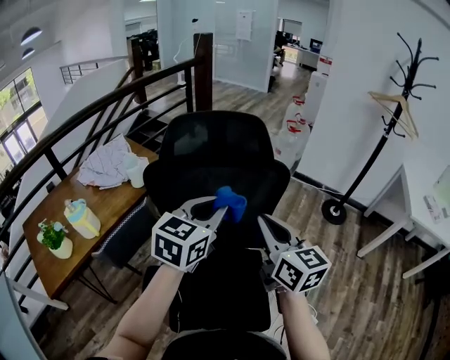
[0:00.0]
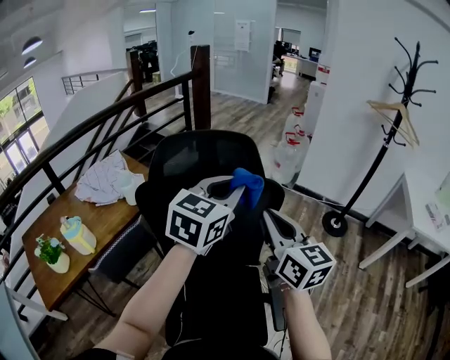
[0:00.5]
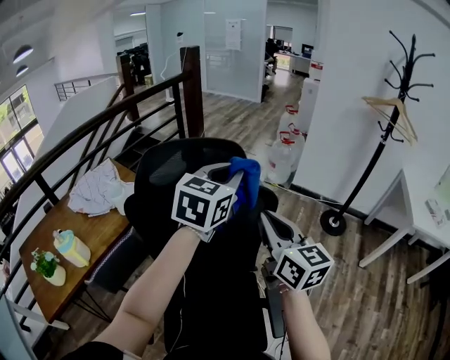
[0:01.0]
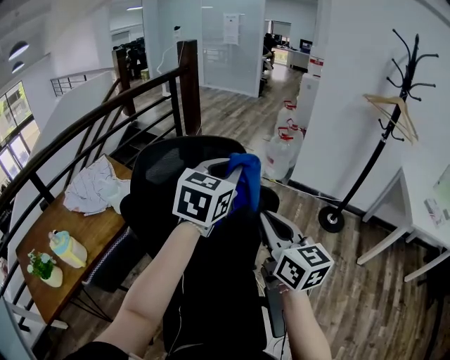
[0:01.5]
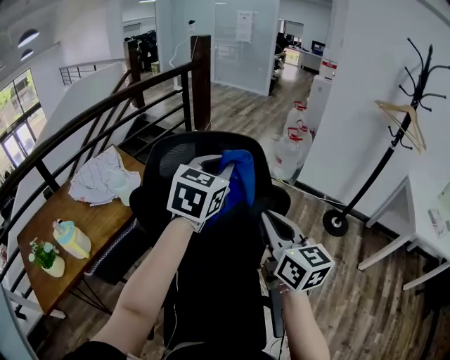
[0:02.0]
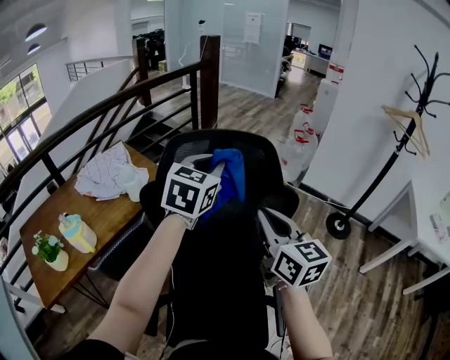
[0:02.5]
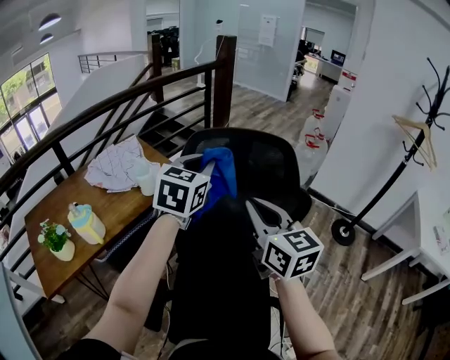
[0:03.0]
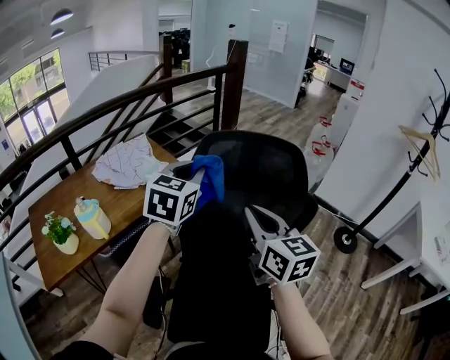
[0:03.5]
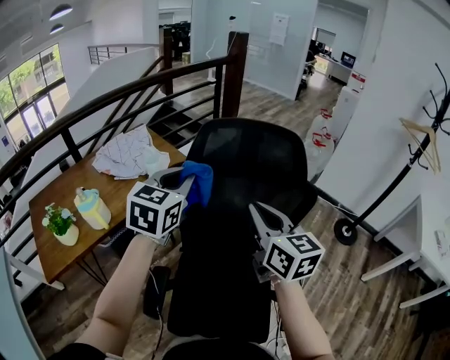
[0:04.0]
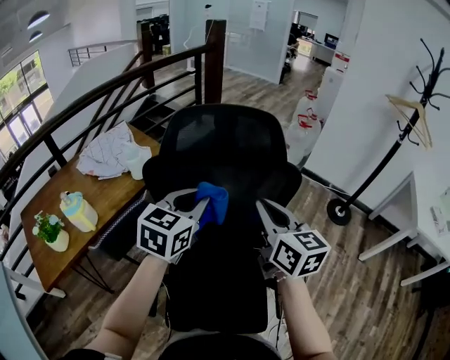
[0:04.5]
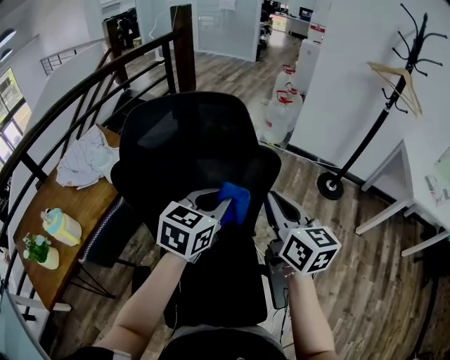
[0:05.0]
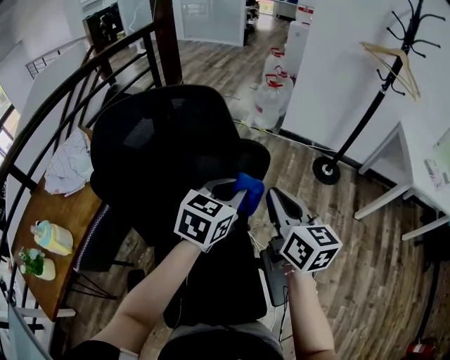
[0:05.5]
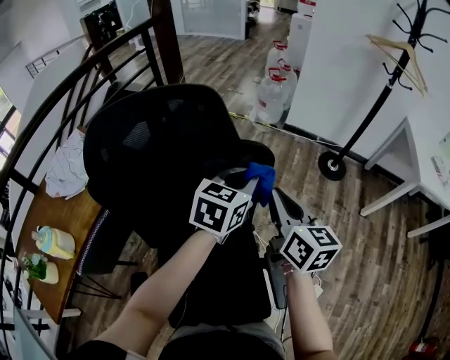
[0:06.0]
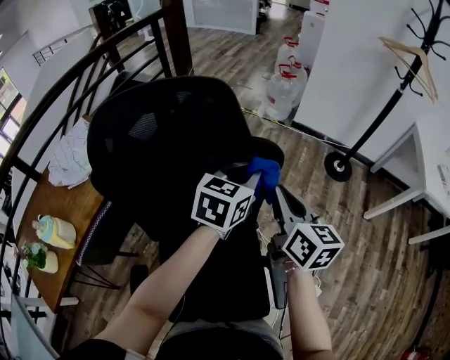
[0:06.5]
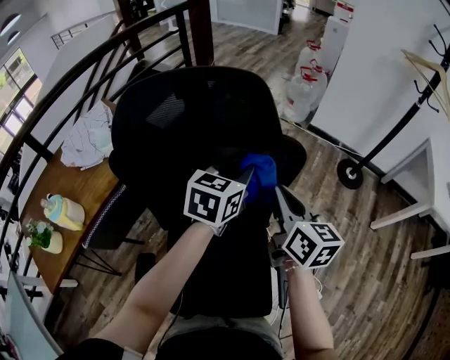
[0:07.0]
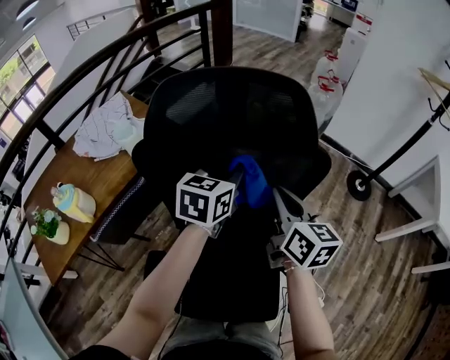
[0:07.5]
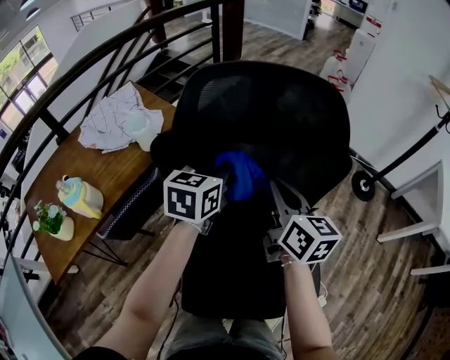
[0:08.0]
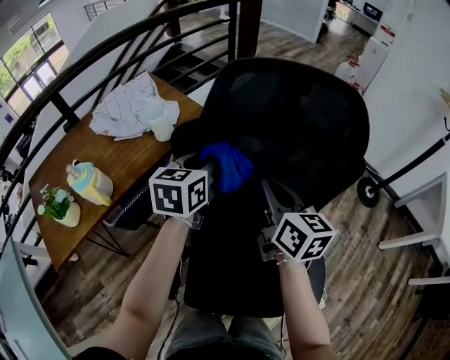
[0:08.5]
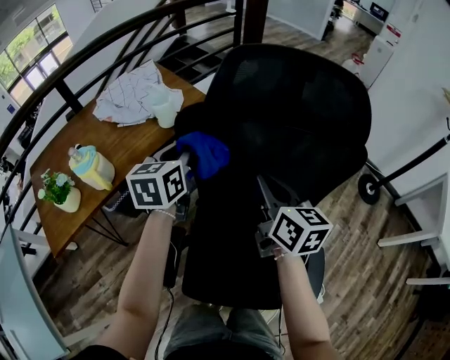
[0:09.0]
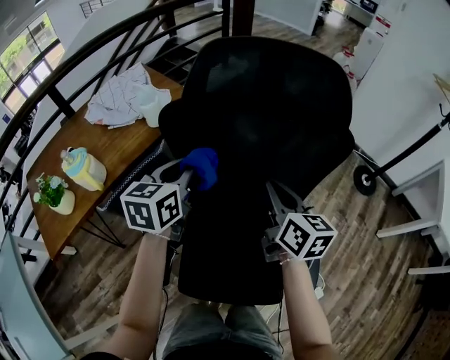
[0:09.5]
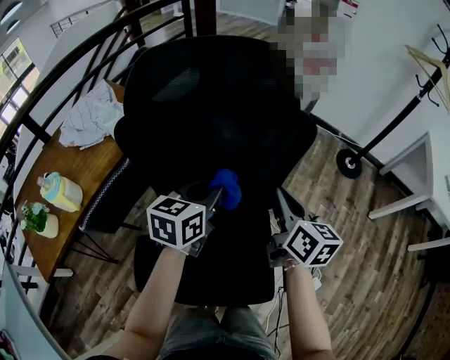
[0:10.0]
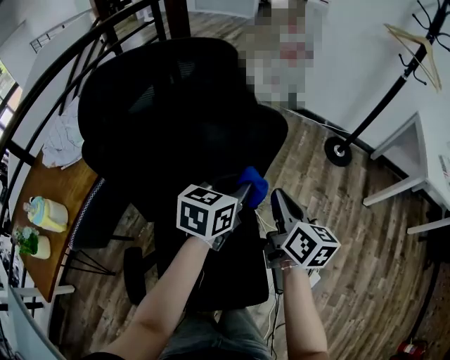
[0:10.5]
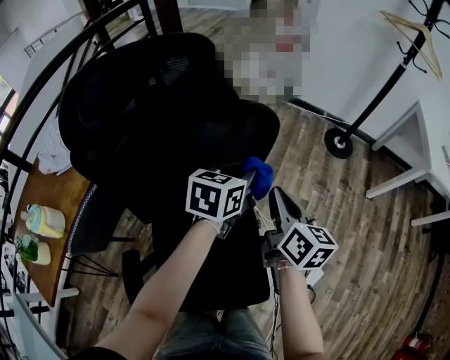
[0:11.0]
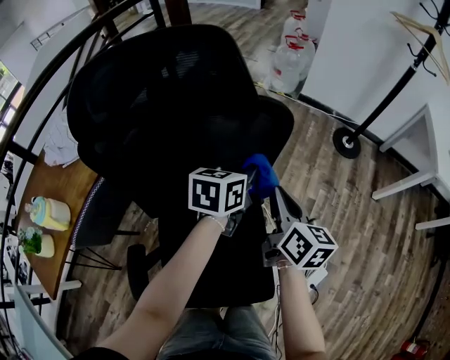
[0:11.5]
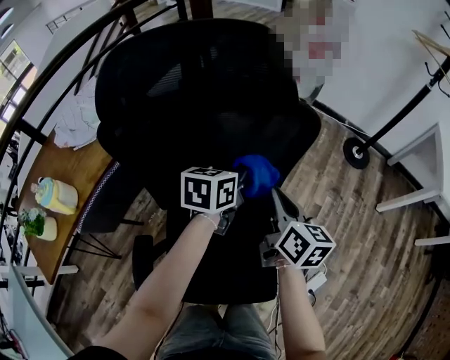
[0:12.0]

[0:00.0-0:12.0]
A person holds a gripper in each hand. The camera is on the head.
0:00.0 to 0:02.0: The left gripper travels forward by roughly 20 cm. Meanwhile the right gripper moves forward, about 10 cm.
0:02.0 to 0:04.0: The left gripper shifts approximately 20 cm to the left; the right gripper moves to the left, roughly 10 cm.
0:04.0 to 0:06.0: The left gripper shifts by some 40 cm, and turns by approximately 30 degrees; the right gripper ends up roughly 25 cm from where it was, and changes its angle by roughly 30 degrees.
0:06.0 to 0:08.0: The two grippers go roughly 25 cm to the left. The left gripper turns by approximately 20 degrees.
0:08.0 to 0:10.0: The right gripper moves to the right, backward and downward, approximately 15 cm; the left gripper travels backward by roughly 10 cm, and travels to the left and back again, approximately 15 cm each way.
0:10.0 to 0:12.0: The left gripper shifts some 10 cm forward, to the right and downward, while the right gripper travels to the right and back again, about 10 cm each way.

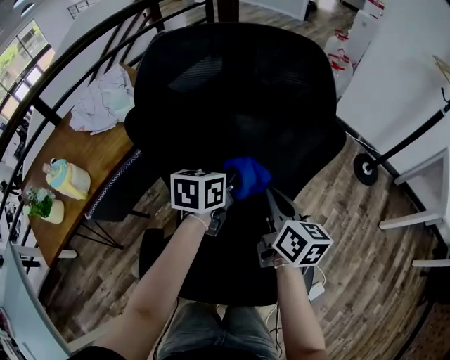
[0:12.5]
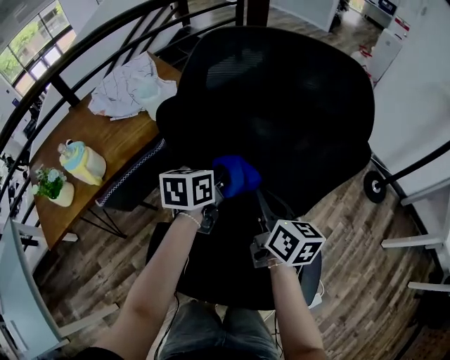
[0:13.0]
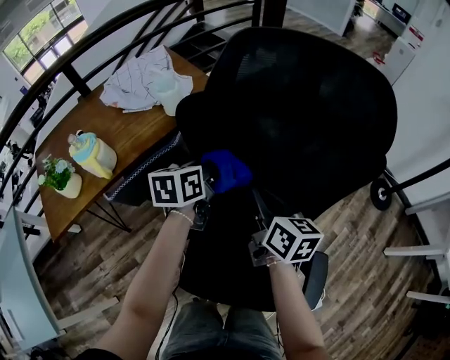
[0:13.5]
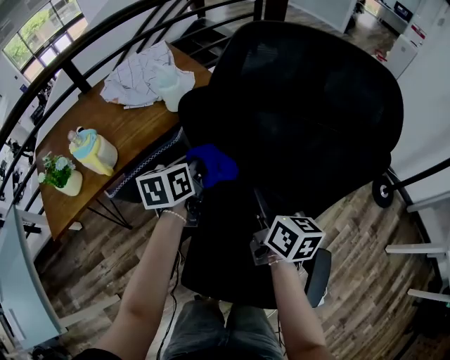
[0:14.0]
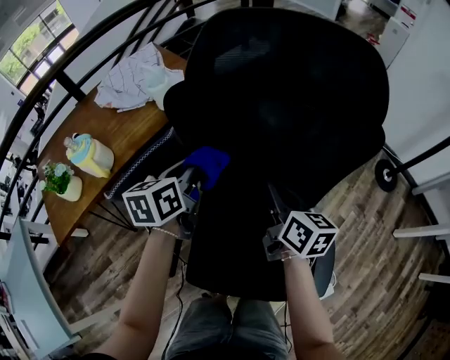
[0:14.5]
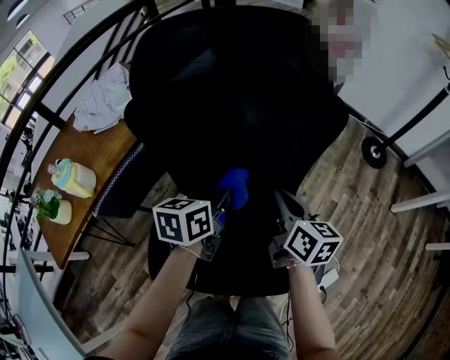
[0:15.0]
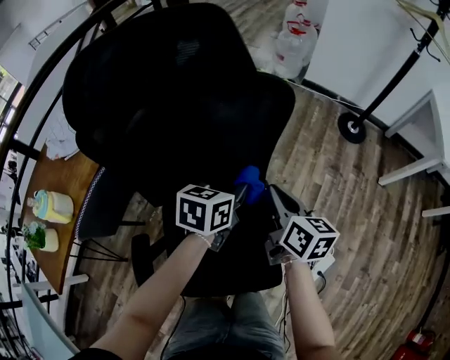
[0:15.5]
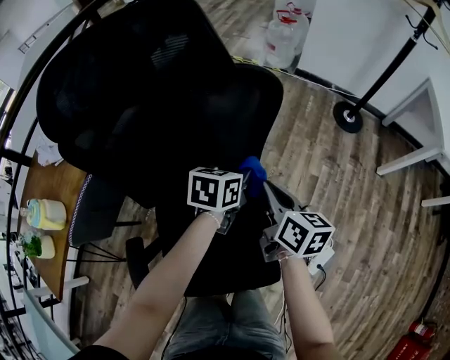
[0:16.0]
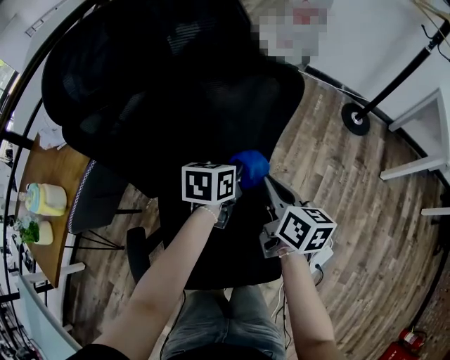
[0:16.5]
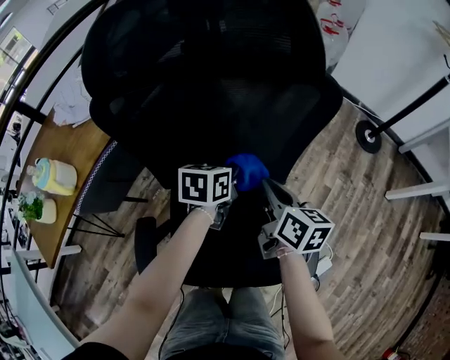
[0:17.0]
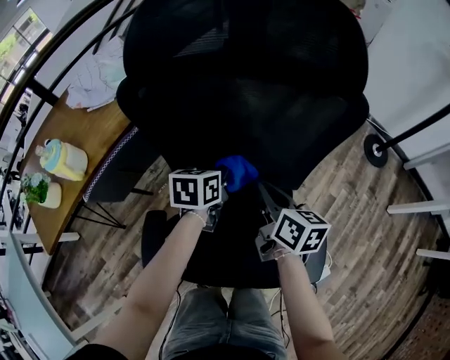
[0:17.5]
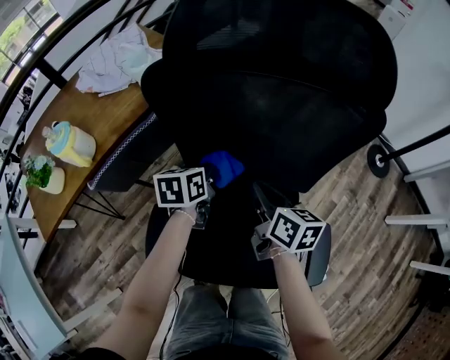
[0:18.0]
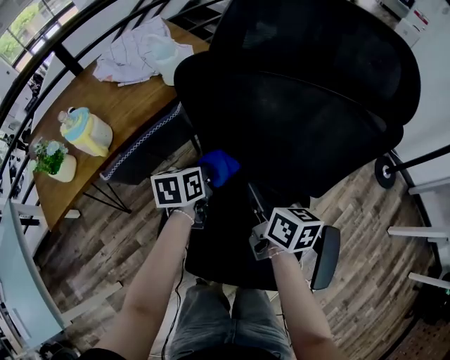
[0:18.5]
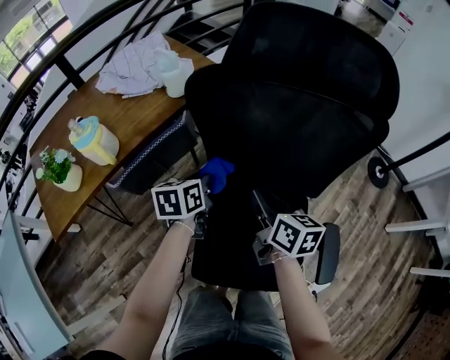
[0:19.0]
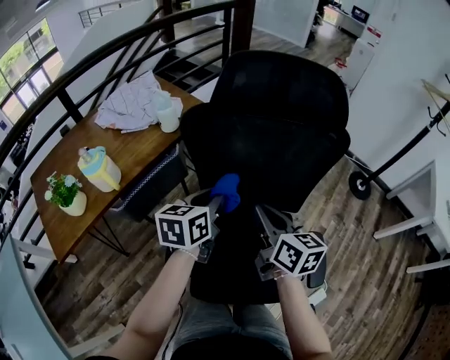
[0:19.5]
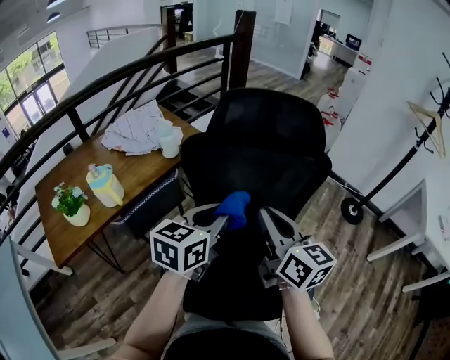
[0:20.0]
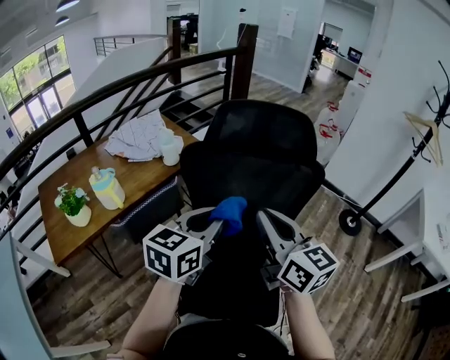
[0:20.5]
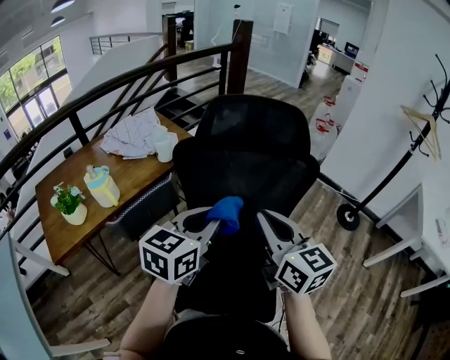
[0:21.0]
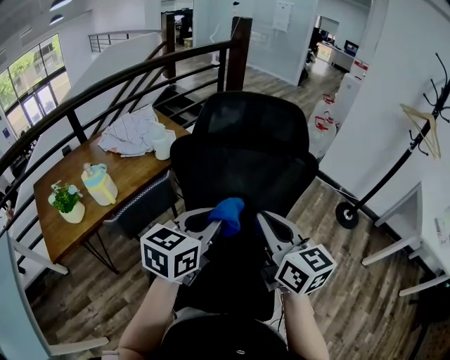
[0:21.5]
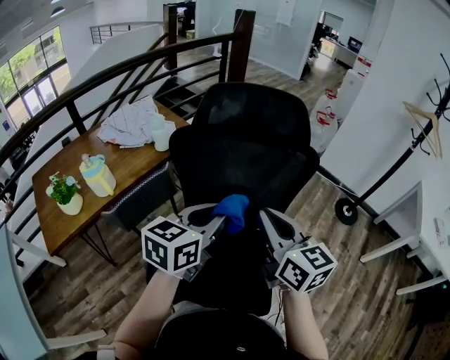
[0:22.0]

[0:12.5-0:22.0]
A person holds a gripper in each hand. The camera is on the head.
0:12.5 to 0:14.5: The right gripper goes approximately 10 cm to the left, while the left gripper travels to the left by some 20 cm, and changes its angle by approximately 20 degrees.
0:14.5 to 0:16.5: The left gripper changes place by approximately 35 cm, and turns by about 30 degrees; the right gripper shifts by about 20 cm.
0:16.5 to 0:18.0: The grippers both shift to the left by approximately 20 cm. The left gripper swivels some 30 degrees.
0:18.0 to 0:20.0: The left gripper is displaced upward and backward by about 30 cm, and changes its angle by some 30 degrees. Meanwhile the right gripper goes some 25 cm upward, and changes its angle by some 30 degrees.
0:20.0 to 0:22.0: The left gripper ends up about 5 cm from where it was.

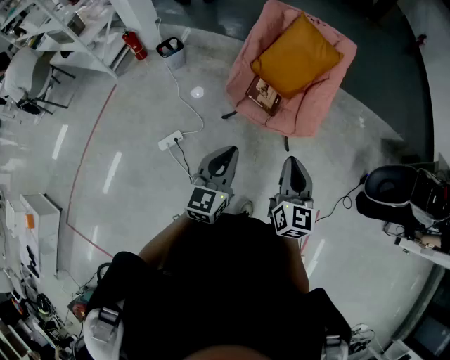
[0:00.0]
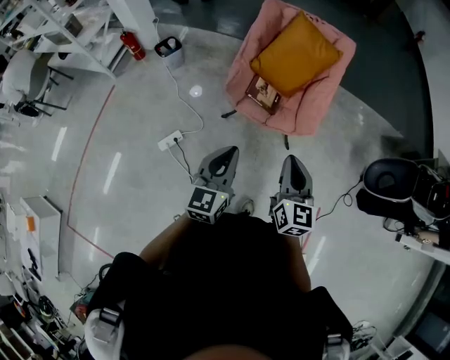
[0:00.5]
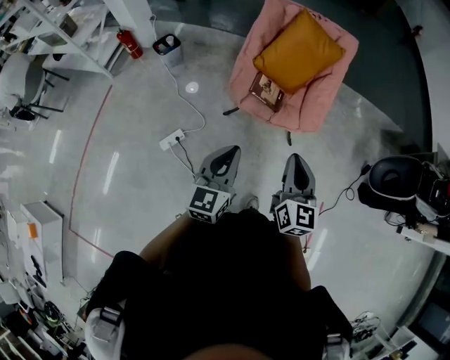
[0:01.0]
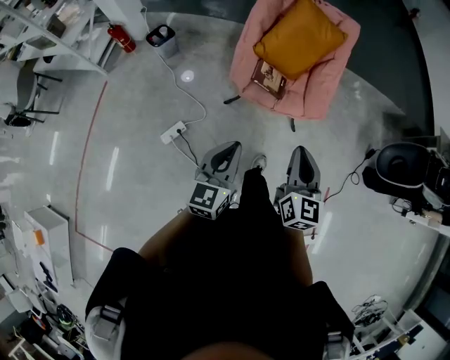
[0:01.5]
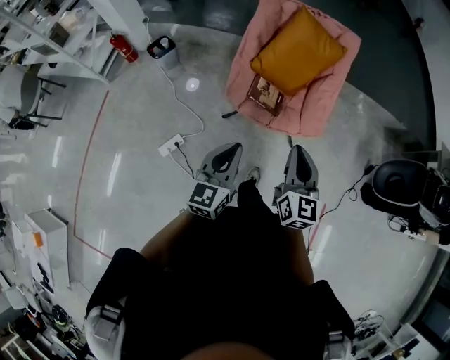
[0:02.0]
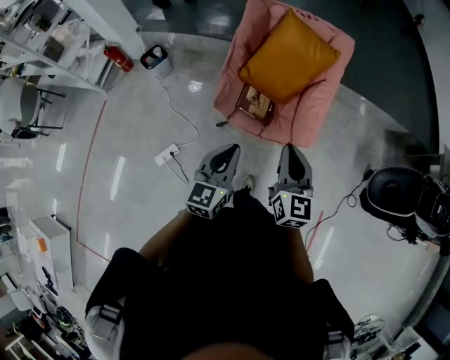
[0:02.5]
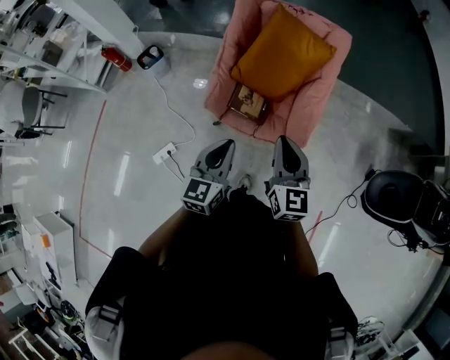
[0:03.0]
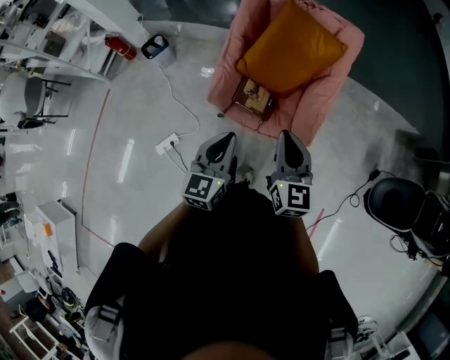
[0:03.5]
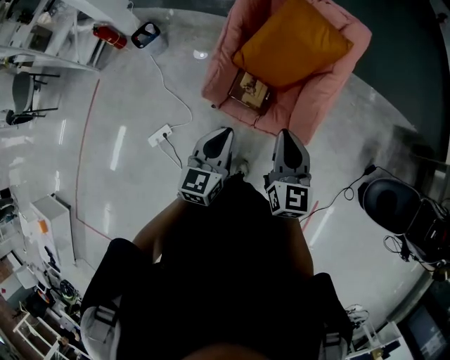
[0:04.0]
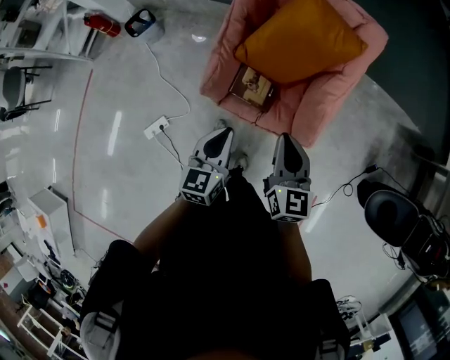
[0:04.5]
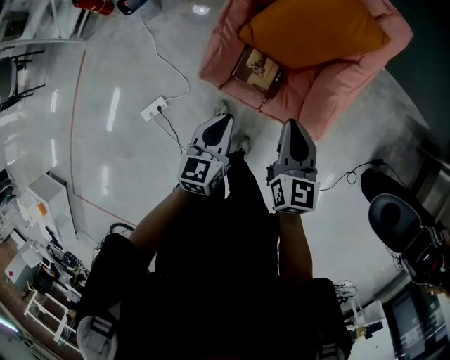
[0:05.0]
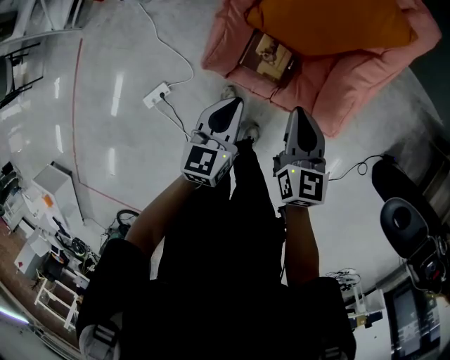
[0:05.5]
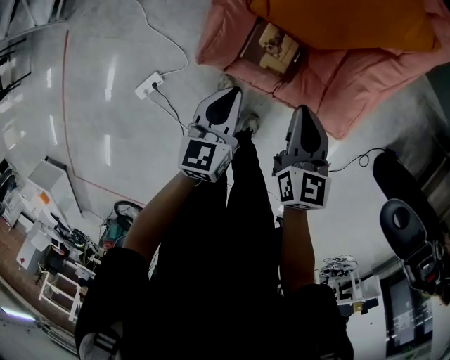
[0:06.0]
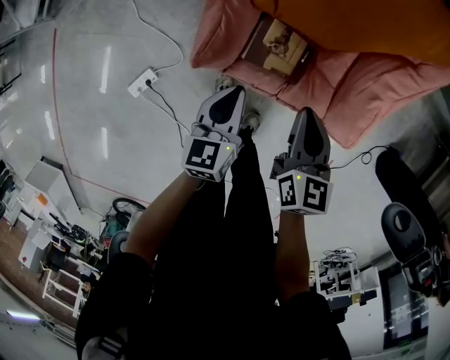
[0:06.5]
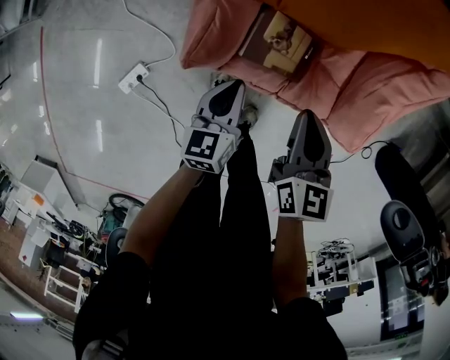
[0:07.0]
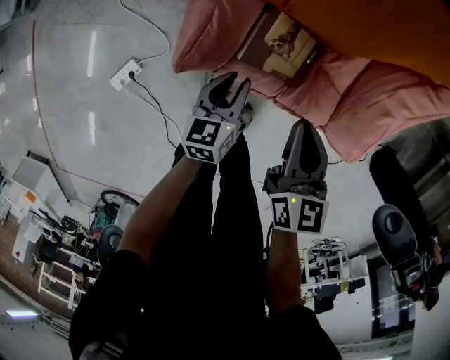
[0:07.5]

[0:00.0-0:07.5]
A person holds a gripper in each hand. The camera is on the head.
0:00.0 to 0:02.0: The grippers both shift forward by approximately 10 cm.
0:02.0 to 0:04.0: The left gripper shifts about 20 cm forward and to the right, while the right gripper travels forward by approximately 20 cm.
0:04.0 to 0:05.5: Both grippers travel together downward and forward, roughly 20 cm.
0:05.5 to 0:07.5: The right gripper moves downward, approximately 20 cm, while the left gripper is displaced downward by roughly 30 cm, and opens its fingers.
